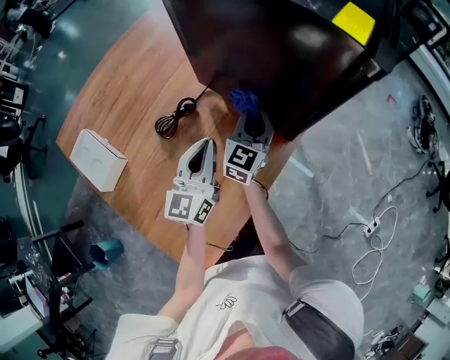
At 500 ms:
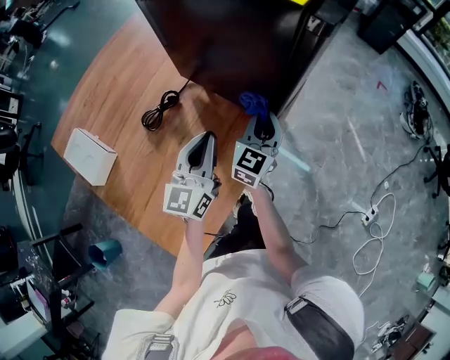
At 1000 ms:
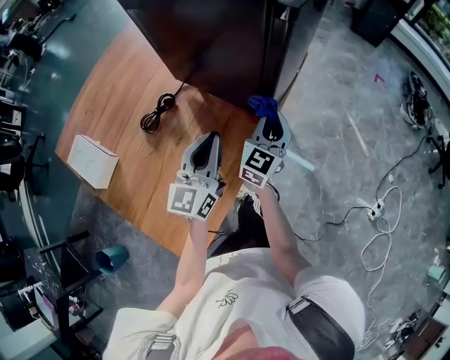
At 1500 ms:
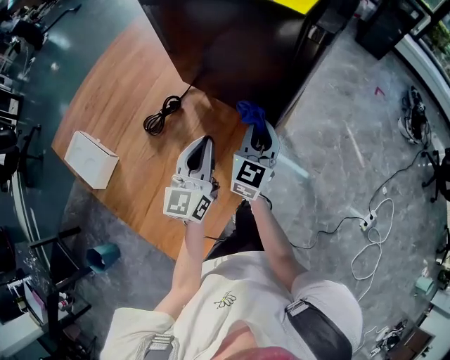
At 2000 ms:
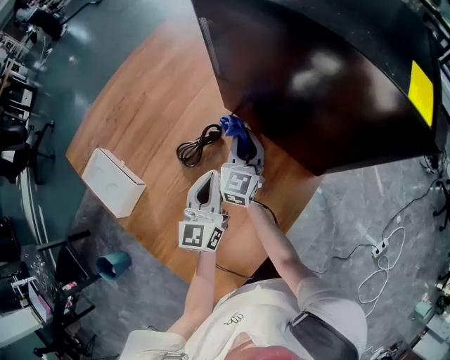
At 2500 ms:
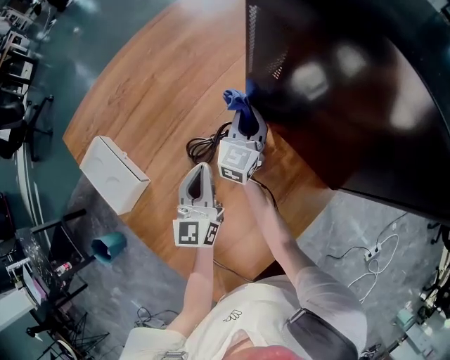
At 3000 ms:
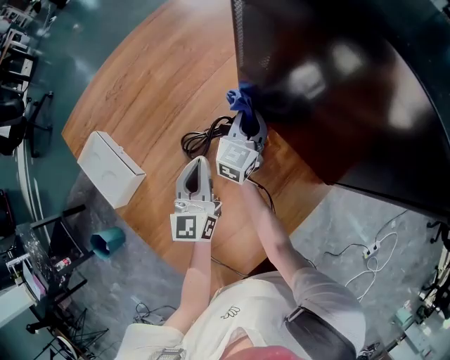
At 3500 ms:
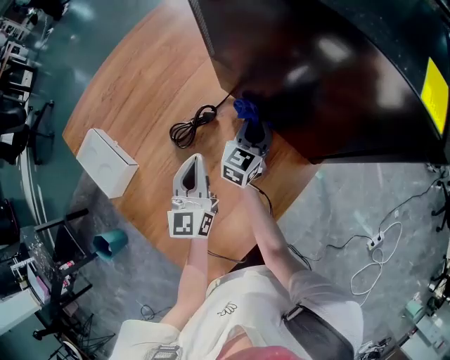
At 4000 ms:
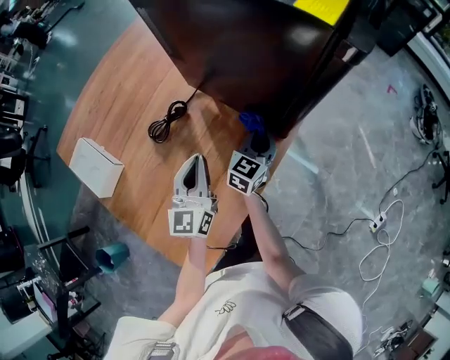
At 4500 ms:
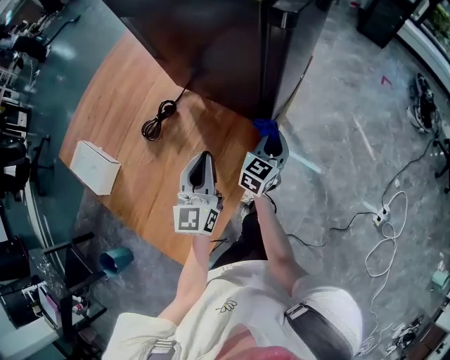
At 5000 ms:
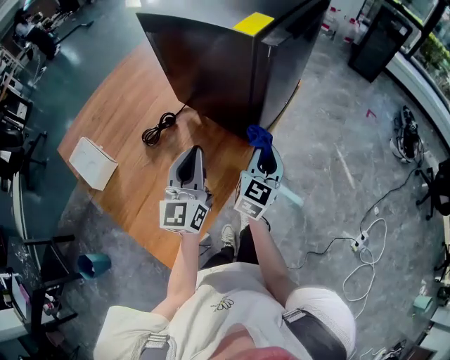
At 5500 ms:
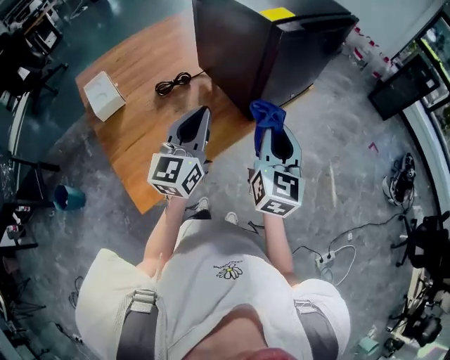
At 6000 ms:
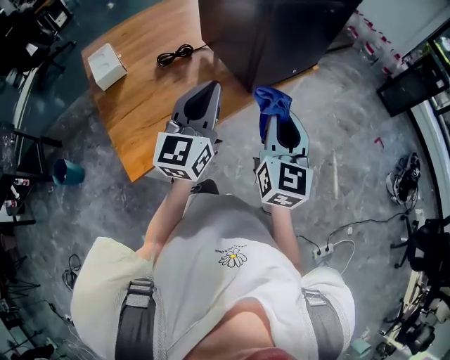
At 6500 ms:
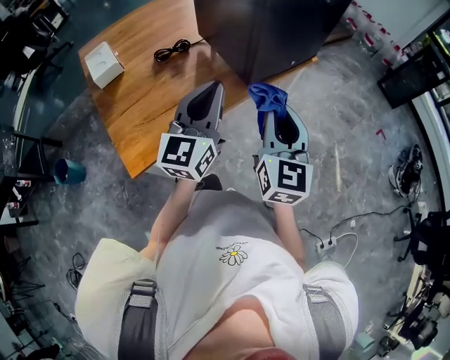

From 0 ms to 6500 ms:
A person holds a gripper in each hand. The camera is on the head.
From 0 ms to 2000 ms: The left gripper moves to the left and downward, about 10 cm, while the right gripper travels to the left by roughly 10 cm.
From 2000 ms to 4500 ms: The left gripper travels to the right and backward by some 15 cm. The right gripper moves to the right, about 30 cm, and changes its angle by some 30 degrees.
From 4500 ms to 6500 ms: The left gripper moves roughly 25 cm. Meanwhile the right gripper travels upward by roughly 25 cm, and changes its angle by about 50 degrees.
